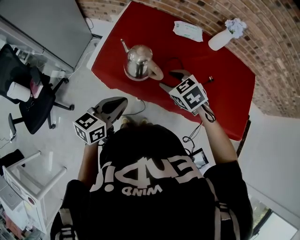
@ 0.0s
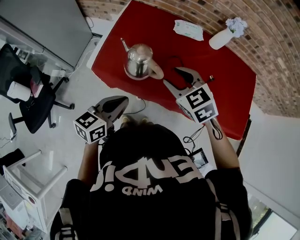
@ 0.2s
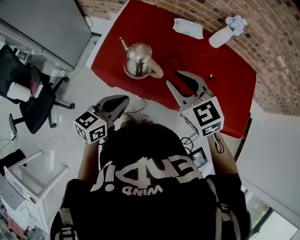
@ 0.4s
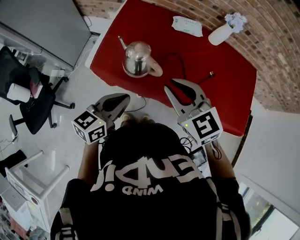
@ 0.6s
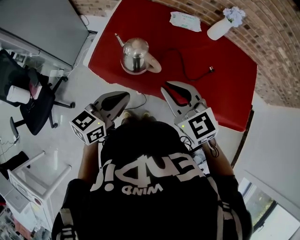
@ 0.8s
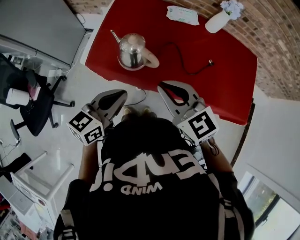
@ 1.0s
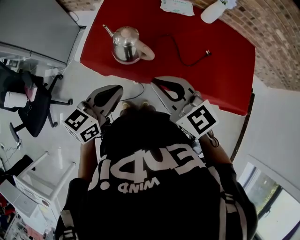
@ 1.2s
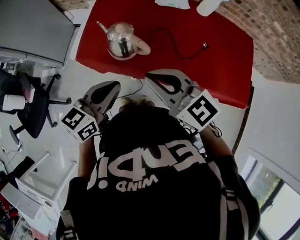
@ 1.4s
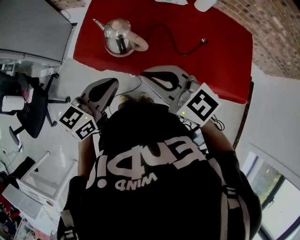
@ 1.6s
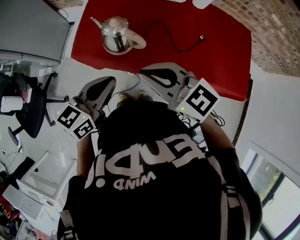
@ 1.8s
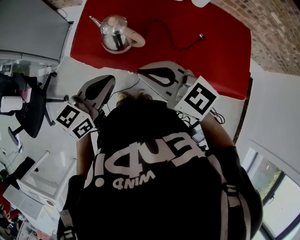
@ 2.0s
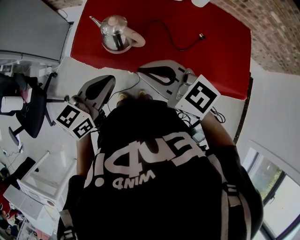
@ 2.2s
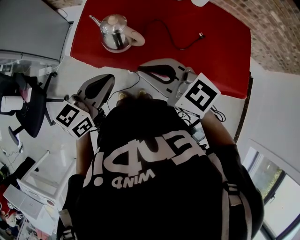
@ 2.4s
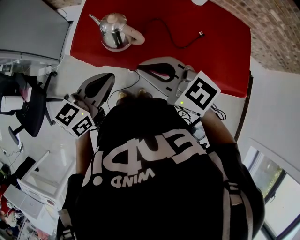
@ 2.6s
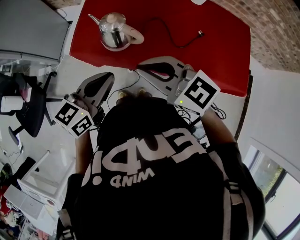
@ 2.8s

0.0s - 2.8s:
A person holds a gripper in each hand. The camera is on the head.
0.0s - 1.4s: The right gripper is displaced upward and backward by approximately 15 cm, tips its fingers upward by about 40 degrees, and closes its fingers, while the left gripper shifts by approximately 5 cm.
1.4s - 2.8s: The grippers move only a little.

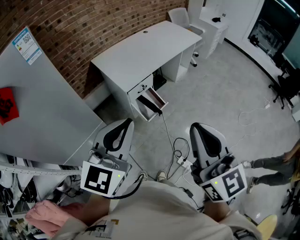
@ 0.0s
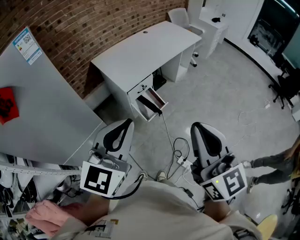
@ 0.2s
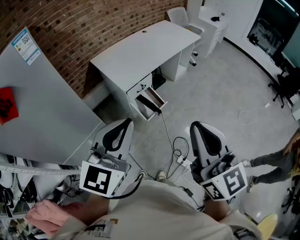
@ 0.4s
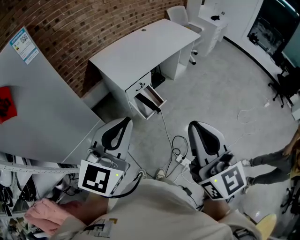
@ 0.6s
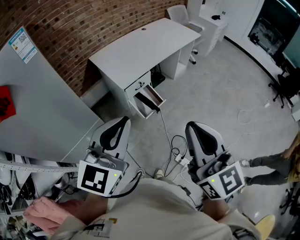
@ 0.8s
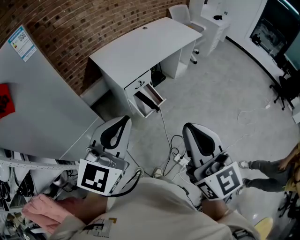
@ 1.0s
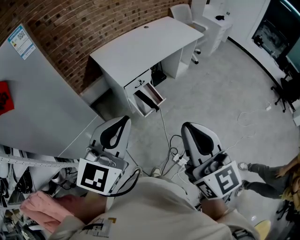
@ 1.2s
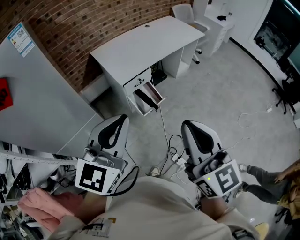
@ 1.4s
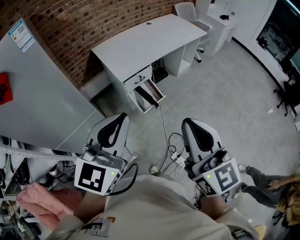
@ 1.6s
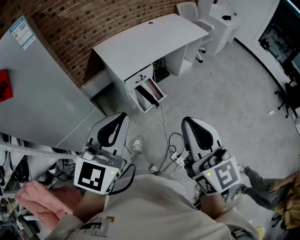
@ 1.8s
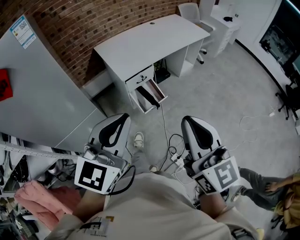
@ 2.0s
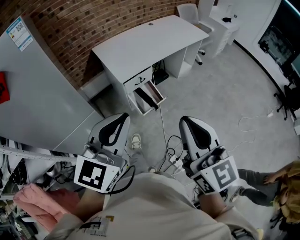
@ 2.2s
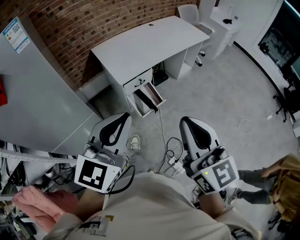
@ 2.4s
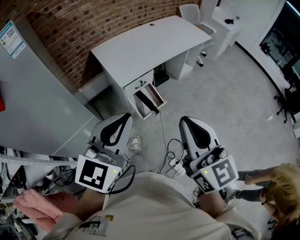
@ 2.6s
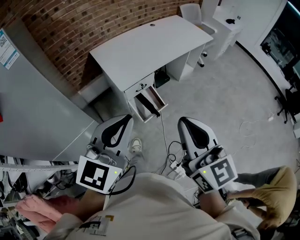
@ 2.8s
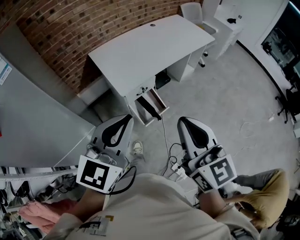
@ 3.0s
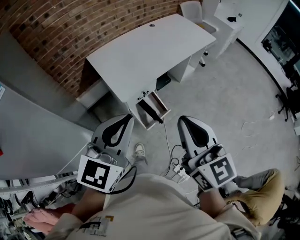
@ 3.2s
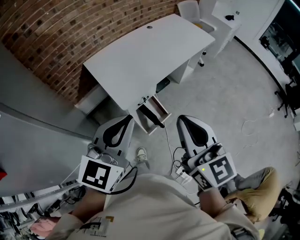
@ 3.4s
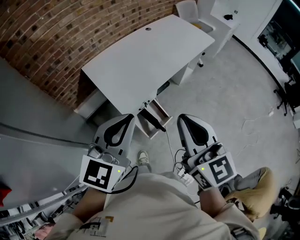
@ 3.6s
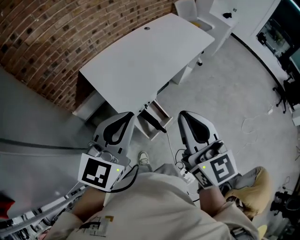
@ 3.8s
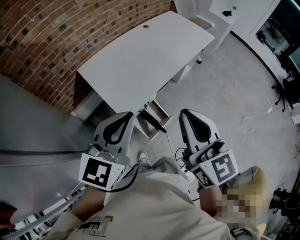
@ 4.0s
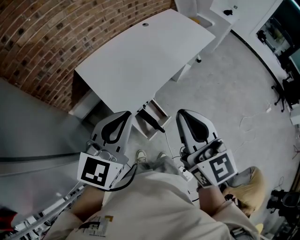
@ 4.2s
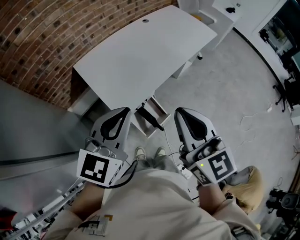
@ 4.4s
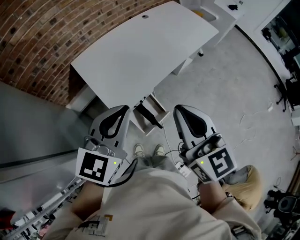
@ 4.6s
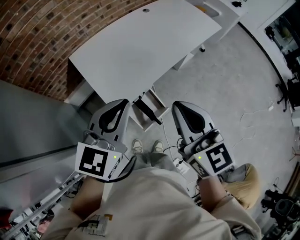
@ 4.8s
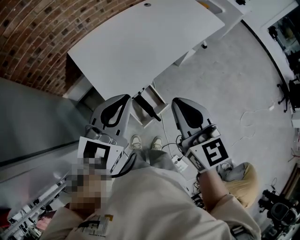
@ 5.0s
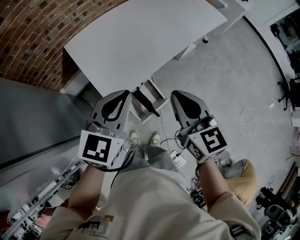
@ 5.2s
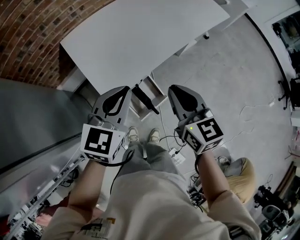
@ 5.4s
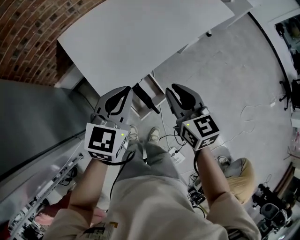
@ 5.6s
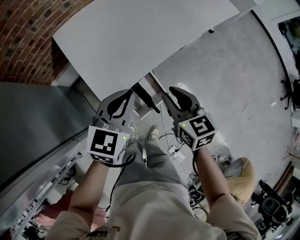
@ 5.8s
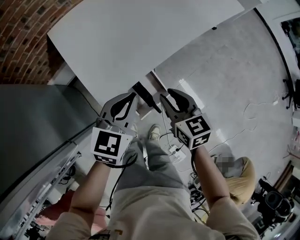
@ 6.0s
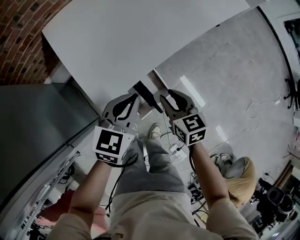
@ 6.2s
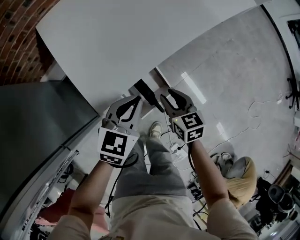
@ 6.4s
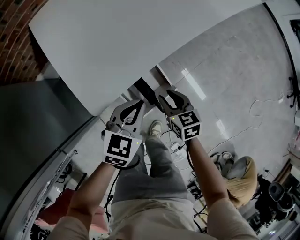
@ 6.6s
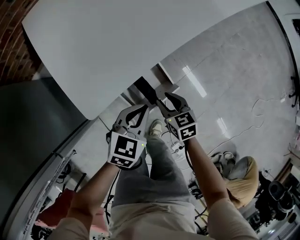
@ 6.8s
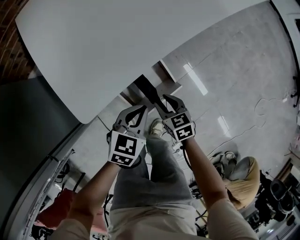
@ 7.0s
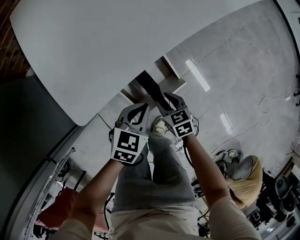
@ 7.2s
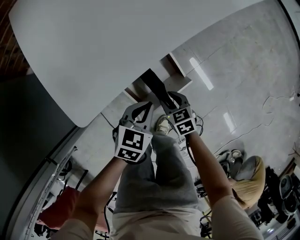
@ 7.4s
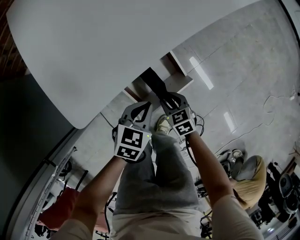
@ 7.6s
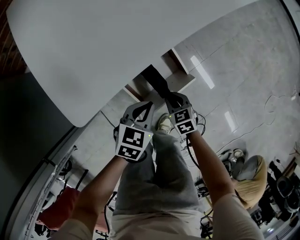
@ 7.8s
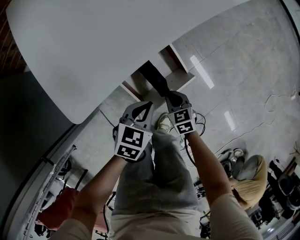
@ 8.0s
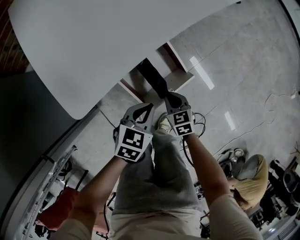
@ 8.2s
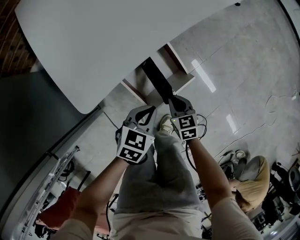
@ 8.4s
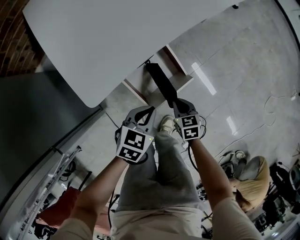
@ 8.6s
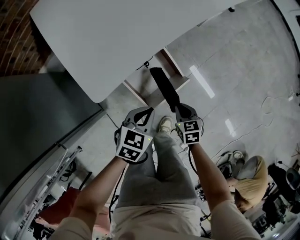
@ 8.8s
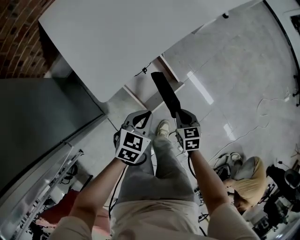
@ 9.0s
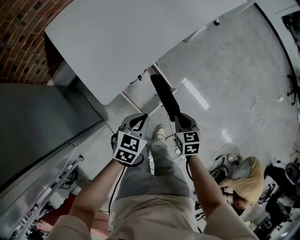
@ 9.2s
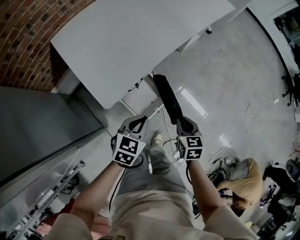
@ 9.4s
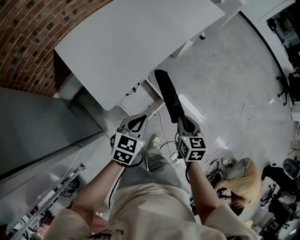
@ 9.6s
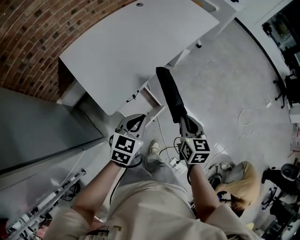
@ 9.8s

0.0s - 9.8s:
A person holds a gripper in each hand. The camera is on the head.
0.0s - 1.4s: The right gripper shifts by some 5 cm. The left gripper shifts about 5 cm to the right.
1.4s - 2.8s: The grippers both shift forward by about 15 cm.
2.8s - 4.2s: Both grippers move forward, some 30 cm.
4.2s - 5.6s: Both grippers travel together downward and forward, roughly 25 cm. The right gripper swivels roughly 20 degrees.
5.6s - 7.0s: The two grippers go some 40 cm downward. The left gripper turns by approximately 20 degrees. The right gripper changes its angle by approximately 30 degrees, and opens its fingers.
7.0s - 8.4s: The left gripper shifts about 10 cm downward and backward. Meanwhile the right gripper shifts approximately 5 cm downward, and closes up.
8.4s - 9.8s: The two grippers go roughly 40 cm upward. The right gripper swivels some 30 degrees.

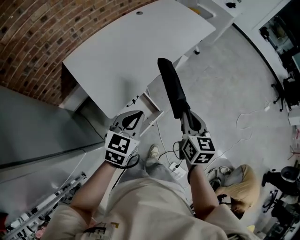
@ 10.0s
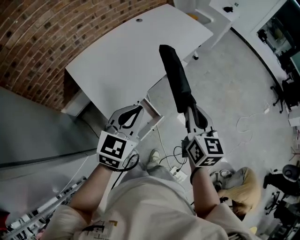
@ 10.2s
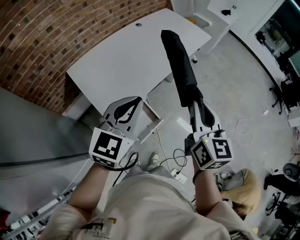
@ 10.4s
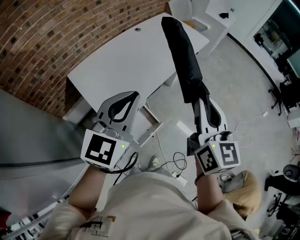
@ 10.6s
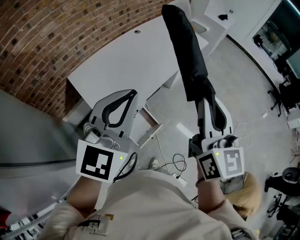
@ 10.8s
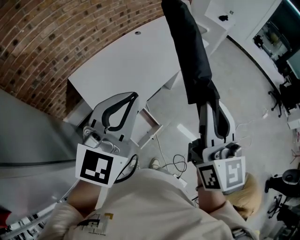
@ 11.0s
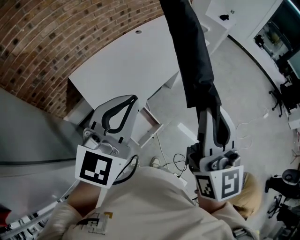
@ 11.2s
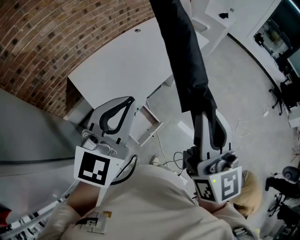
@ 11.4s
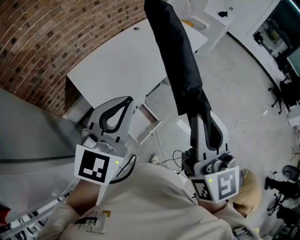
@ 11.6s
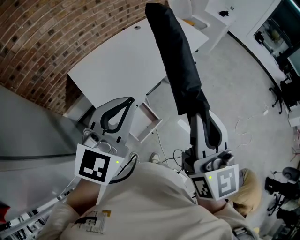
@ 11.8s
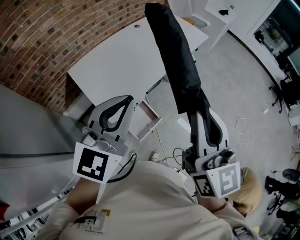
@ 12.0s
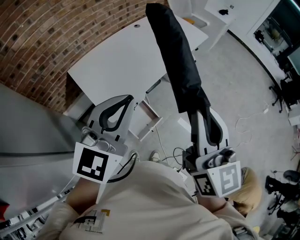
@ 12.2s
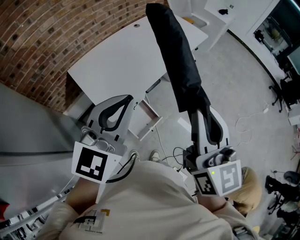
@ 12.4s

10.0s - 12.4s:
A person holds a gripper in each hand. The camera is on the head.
10.0s - 11.2s: Both grippers travel together upward, about 30 cm. The right gripper angles its fingers upward, by roughly 40 degrees; the left gripper swivels approximately 30 degrees.
11.2s - 12.4s: The grippers make only small movements.

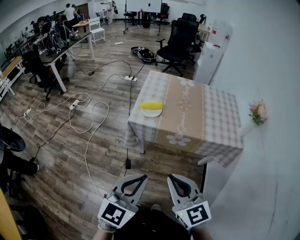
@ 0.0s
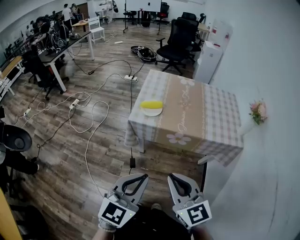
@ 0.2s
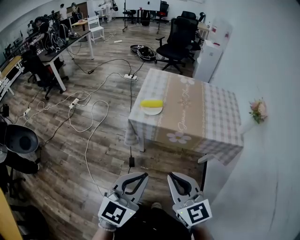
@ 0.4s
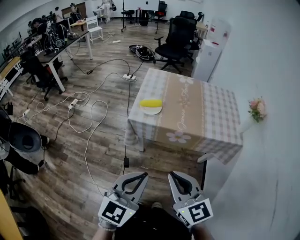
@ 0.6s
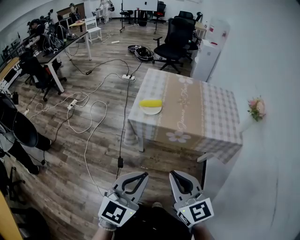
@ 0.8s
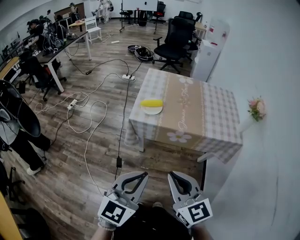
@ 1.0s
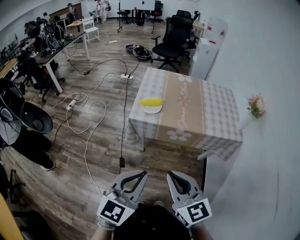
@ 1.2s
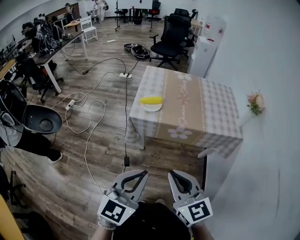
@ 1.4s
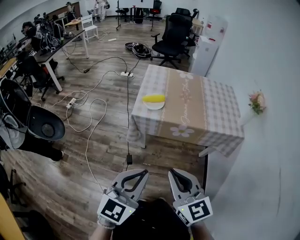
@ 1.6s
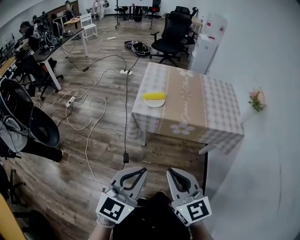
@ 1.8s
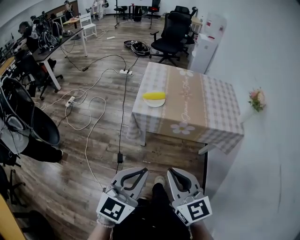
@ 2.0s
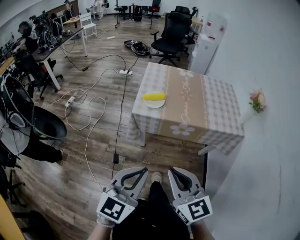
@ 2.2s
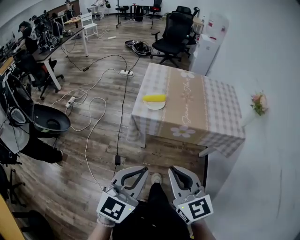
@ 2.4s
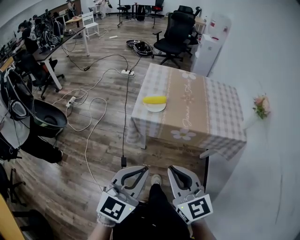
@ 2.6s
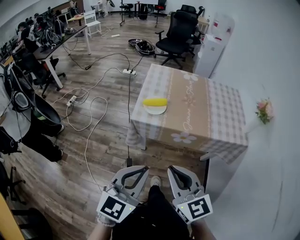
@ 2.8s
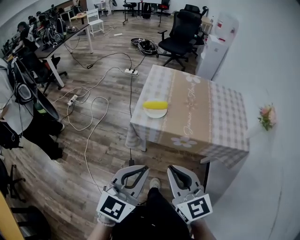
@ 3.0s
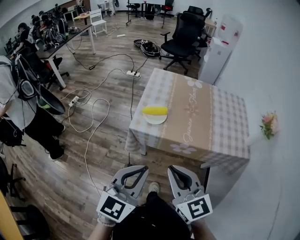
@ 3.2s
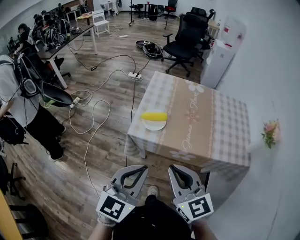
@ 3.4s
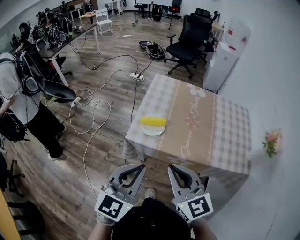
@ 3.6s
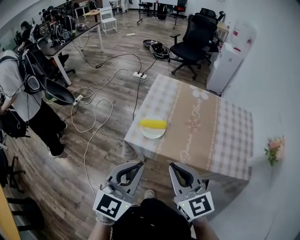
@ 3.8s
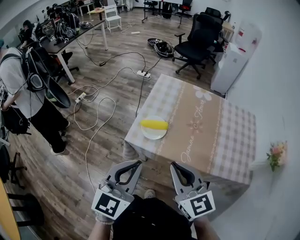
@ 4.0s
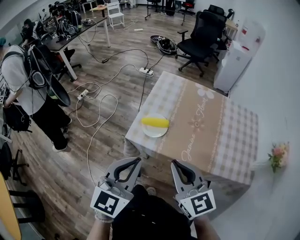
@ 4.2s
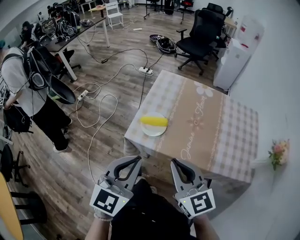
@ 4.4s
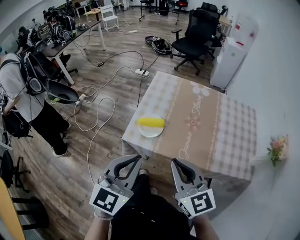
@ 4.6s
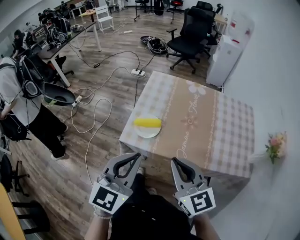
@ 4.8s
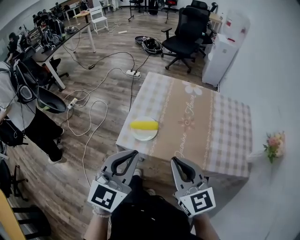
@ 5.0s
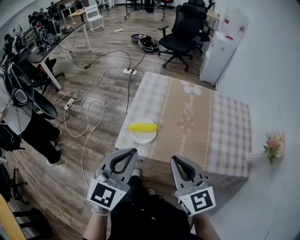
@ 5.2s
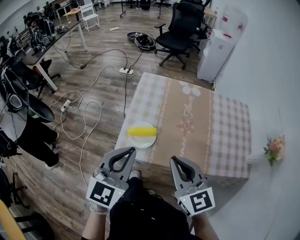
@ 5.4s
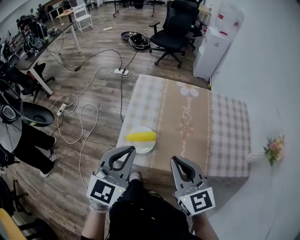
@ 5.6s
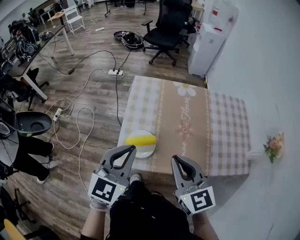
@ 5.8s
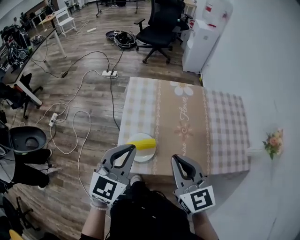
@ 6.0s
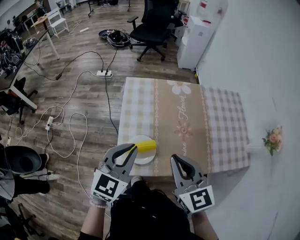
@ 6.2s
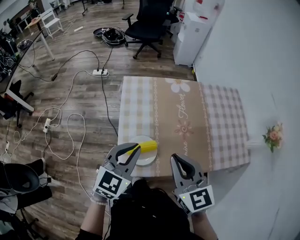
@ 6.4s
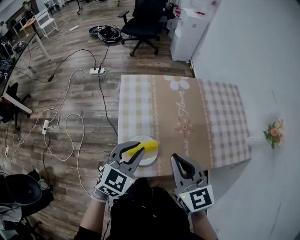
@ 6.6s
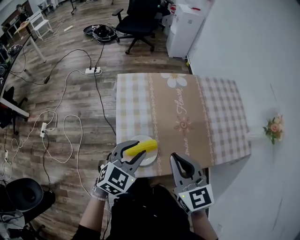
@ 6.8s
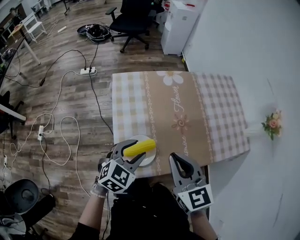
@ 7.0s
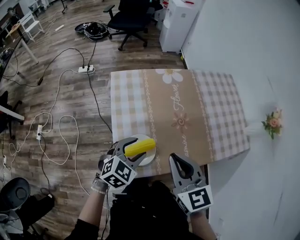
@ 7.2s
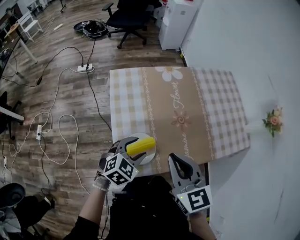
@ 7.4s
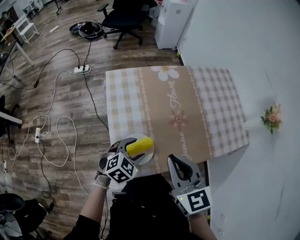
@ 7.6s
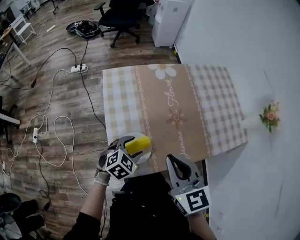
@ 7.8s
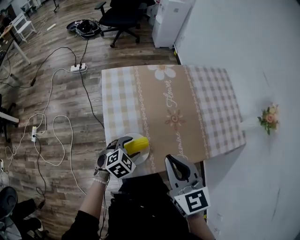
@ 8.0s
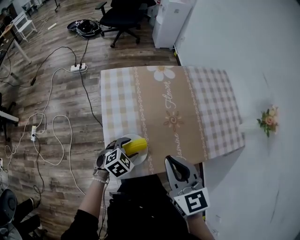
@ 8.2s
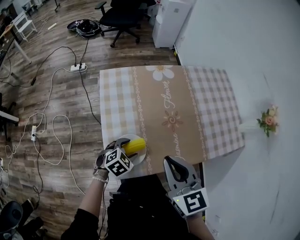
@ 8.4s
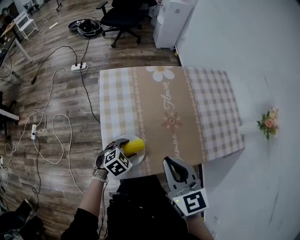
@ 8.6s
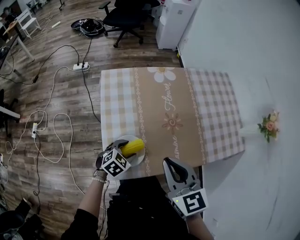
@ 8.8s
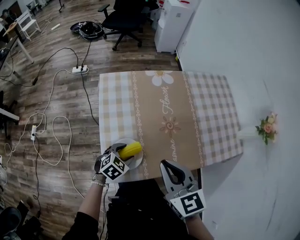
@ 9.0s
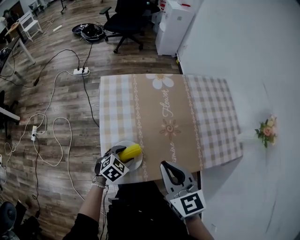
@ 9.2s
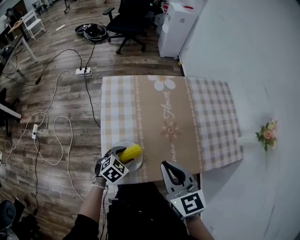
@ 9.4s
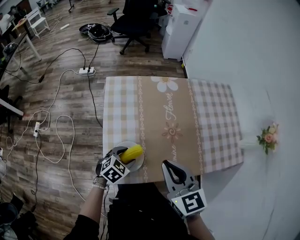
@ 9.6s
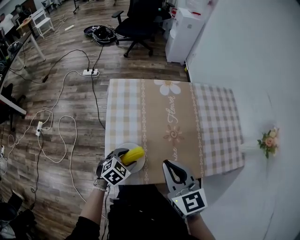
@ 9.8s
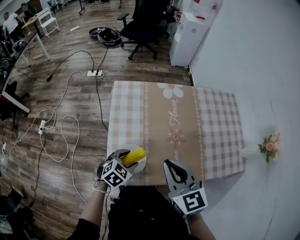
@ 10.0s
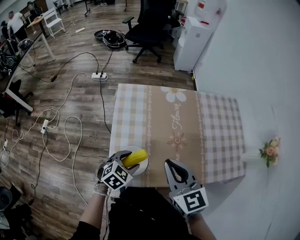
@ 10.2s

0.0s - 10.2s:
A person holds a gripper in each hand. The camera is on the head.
0.0s - 1.4s: The grippers move only a little.
1.4s - 3.0s: The two grippers go roughly 10 cm forward.
3.0s - 4.4s: The left gripper heads forward, covering roughly 15 cm; the right gripper goes some 20 cm forward and to the right.
4.4s - 5.8s: Both grippers travel together forward, some 15 cm.
5.8s - 7.2s: The right gripper ends up roughly 10 cm from where it was; the left gripper is displaced downward by roughly 20 cm, rotates roughly 40 degrees, and opens its fingers.
7.2s - 8.8s: The left gripper moves downward, about 10 cm.
8.8s - 10.2s: The left gripper shifts roughly 5 cm upward.
